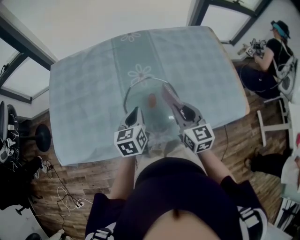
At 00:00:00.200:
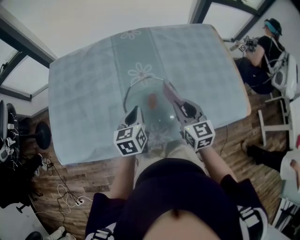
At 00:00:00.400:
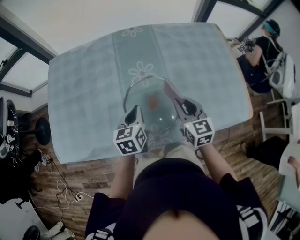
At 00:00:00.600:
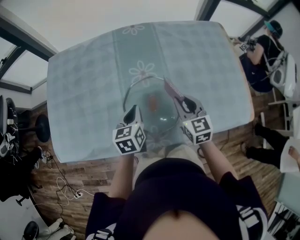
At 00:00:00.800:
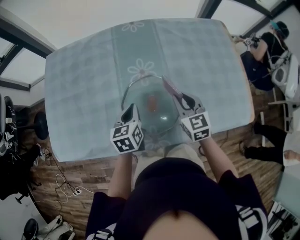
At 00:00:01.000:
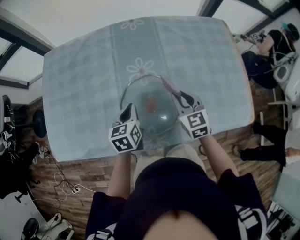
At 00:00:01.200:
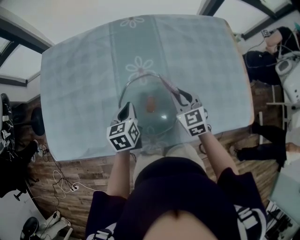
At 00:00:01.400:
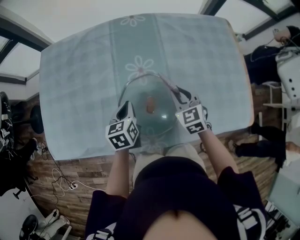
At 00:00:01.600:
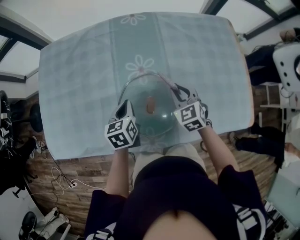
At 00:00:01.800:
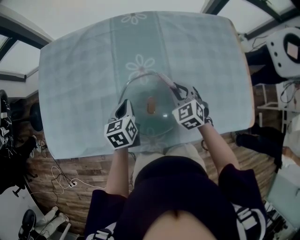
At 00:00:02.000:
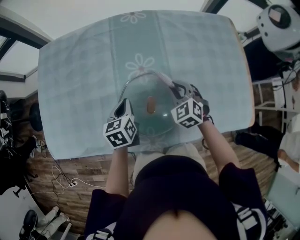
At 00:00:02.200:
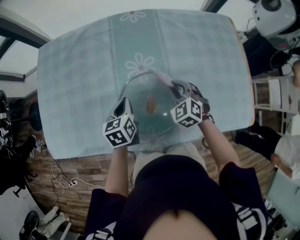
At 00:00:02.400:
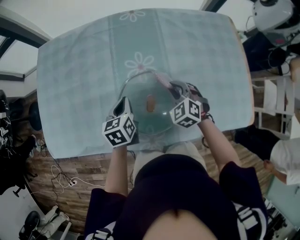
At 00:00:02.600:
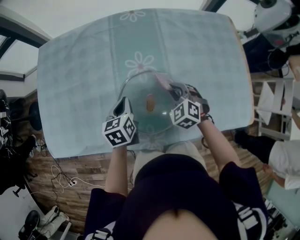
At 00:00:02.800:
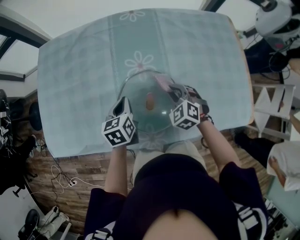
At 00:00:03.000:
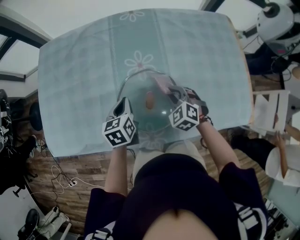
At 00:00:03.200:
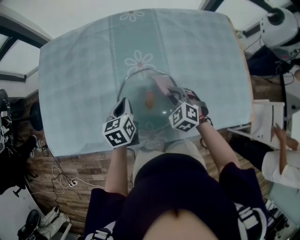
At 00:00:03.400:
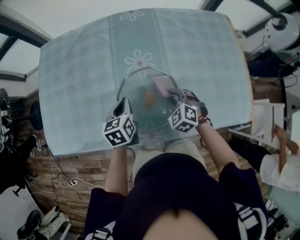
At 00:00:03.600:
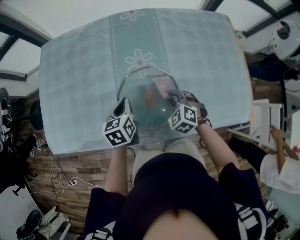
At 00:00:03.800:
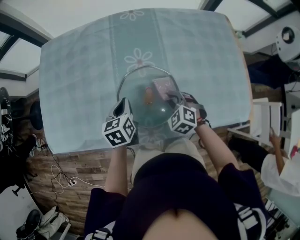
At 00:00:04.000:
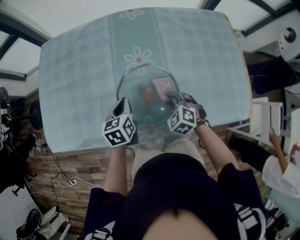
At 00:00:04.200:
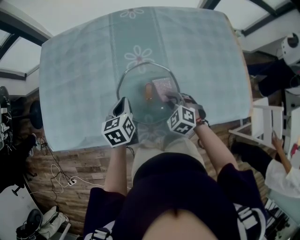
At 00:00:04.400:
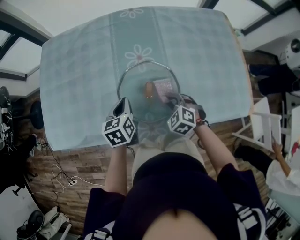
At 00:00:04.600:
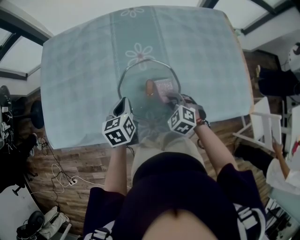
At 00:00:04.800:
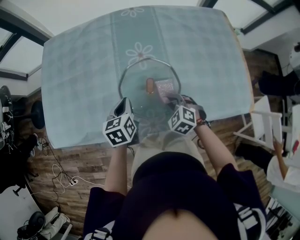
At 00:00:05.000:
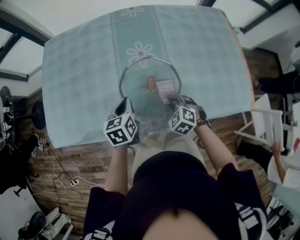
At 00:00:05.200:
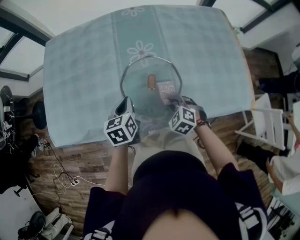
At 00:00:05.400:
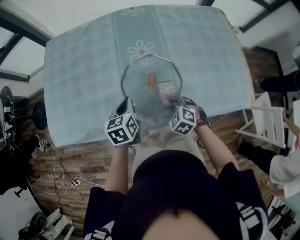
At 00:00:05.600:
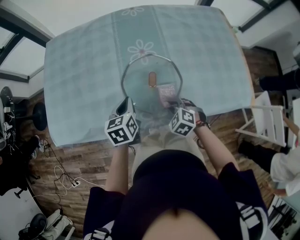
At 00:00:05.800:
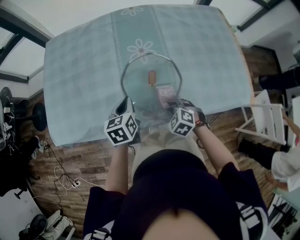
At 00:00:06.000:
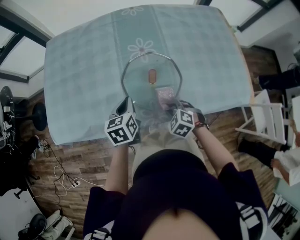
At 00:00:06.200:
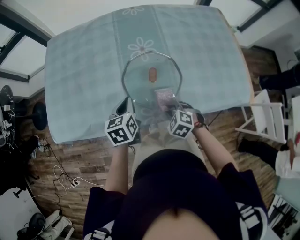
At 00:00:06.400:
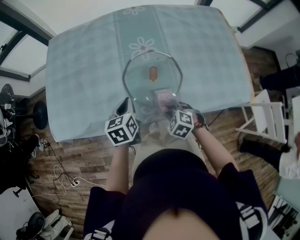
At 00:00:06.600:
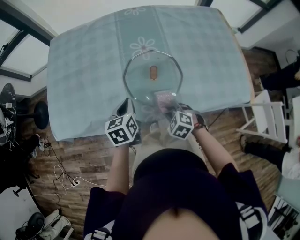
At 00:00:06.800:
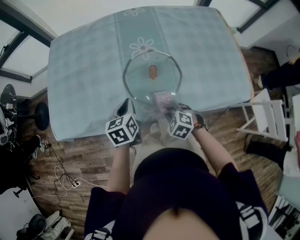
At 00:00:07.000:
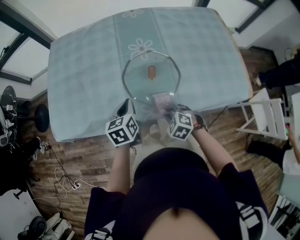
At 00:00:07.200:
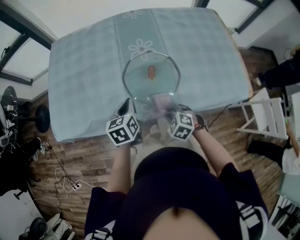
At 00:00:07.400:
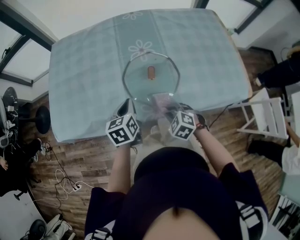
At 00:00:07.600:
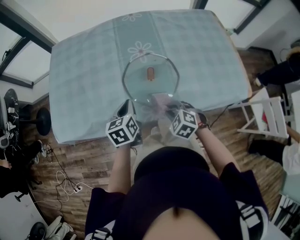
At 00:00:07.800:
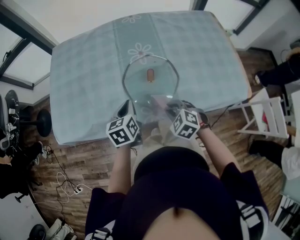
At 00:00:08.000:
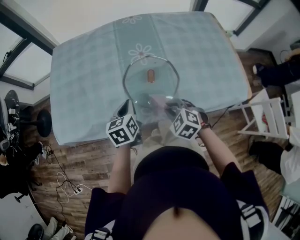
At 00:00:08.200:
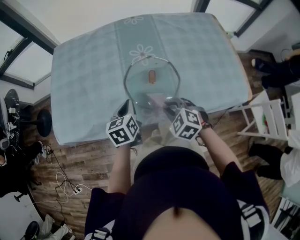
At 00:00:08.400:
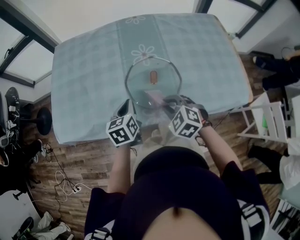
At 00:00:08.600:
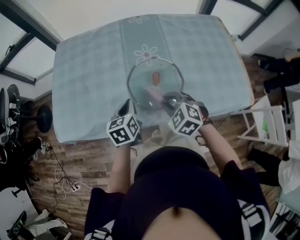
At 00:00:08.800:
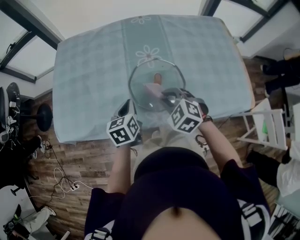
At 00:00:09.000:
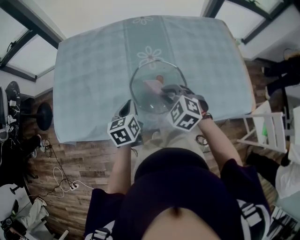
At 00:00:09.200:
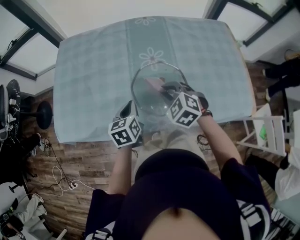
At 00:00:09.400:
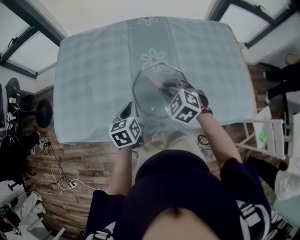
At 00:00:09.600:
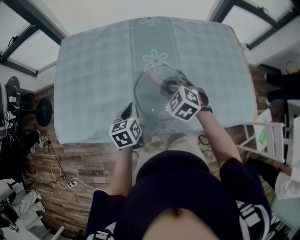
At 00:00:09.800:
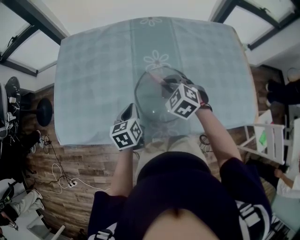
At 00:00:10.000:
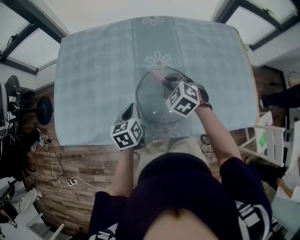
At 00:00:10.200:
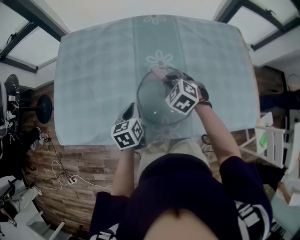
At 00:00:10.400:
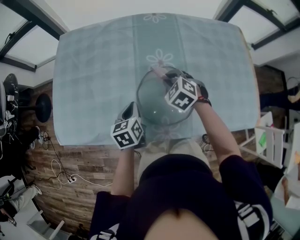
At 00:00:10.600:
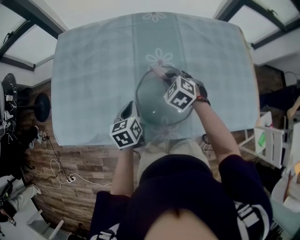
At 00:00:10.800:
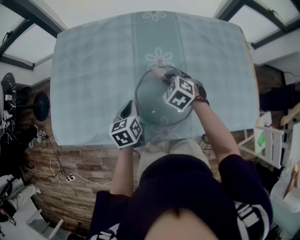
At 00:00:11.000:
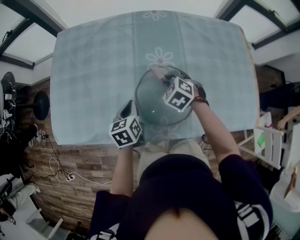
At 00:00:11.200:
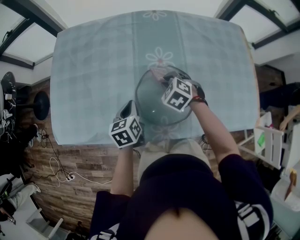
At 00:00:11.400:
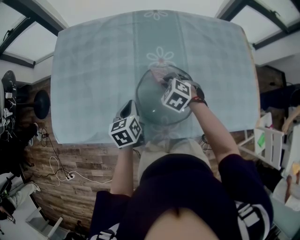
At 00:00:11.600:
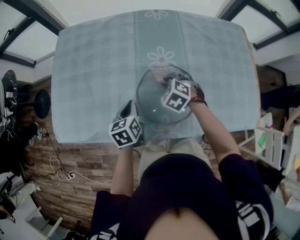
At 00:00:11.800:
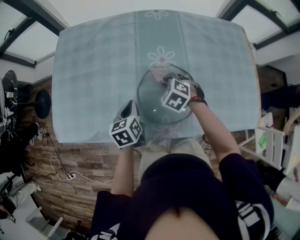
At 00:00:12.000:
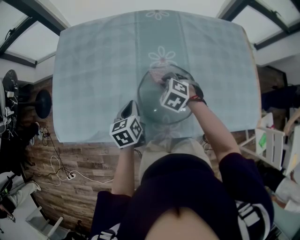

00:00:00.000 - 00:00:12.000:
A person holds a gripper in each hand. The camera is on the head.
00:00:00.000 - 00:00:01.600: The left gripper travels downward and forward by about 10 cm, while the right gripper heads forward and downward, covering approximately 20 cm, and swivels roughly 30 degrees.
00:00:01.600 - 00:00:03.000: The right gripper shifts by some 5 cm, and swivels about 20 degrees.
00:00:03.000 - 00:00:04.400: The right gripper shifts some 10 cm backward. Meanwhile the left gripper is displaced backward by some 5 cm.
00:00:04.400 - 00:00:06.000: The right gripper moves backward, approximately 10 cm, while the left gripper travels backward by roughly 5 cm.
00:00:06.000 - 00:00:07.600: The right gripper changes place by roughly 5 cm.
00:00:07.600 - 00:00:09.000: The right gripper heads forward and upward, covering some 15 cm.
00:00:09.000 - 00:00:10.400: The left gripper travels forward by approximately 5 cm, while the right gripper moves forward, approximately 15 cm.
00:00:10.400 - 00:00:12.000: The grippers make only small movements.

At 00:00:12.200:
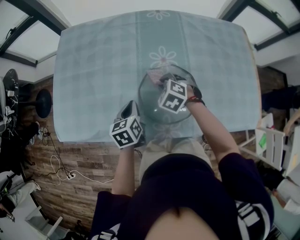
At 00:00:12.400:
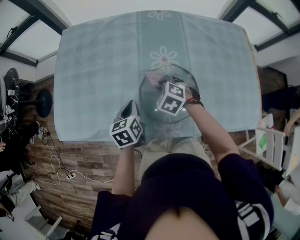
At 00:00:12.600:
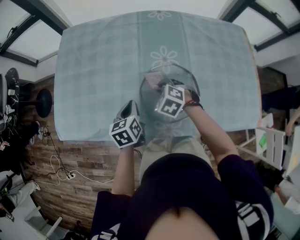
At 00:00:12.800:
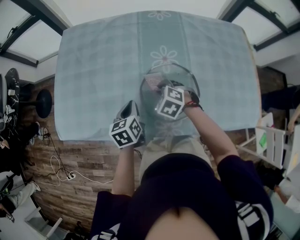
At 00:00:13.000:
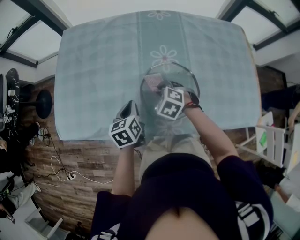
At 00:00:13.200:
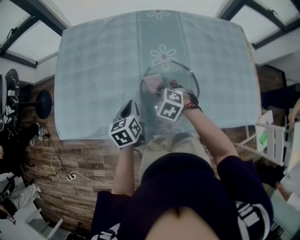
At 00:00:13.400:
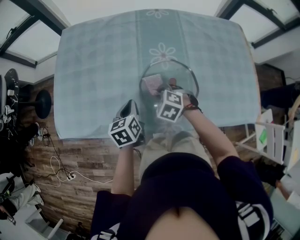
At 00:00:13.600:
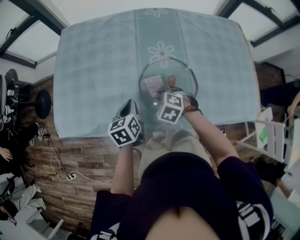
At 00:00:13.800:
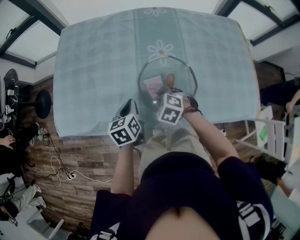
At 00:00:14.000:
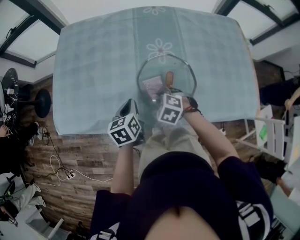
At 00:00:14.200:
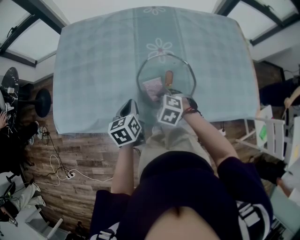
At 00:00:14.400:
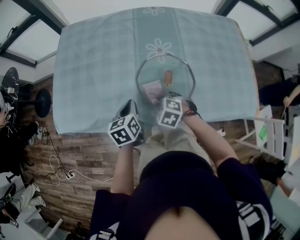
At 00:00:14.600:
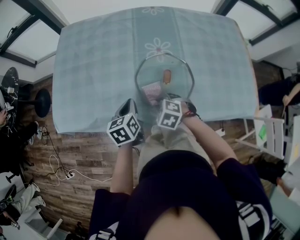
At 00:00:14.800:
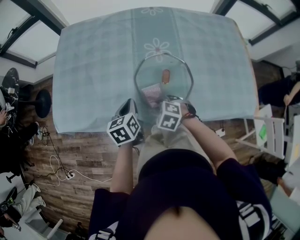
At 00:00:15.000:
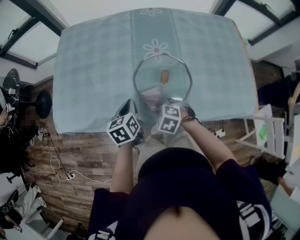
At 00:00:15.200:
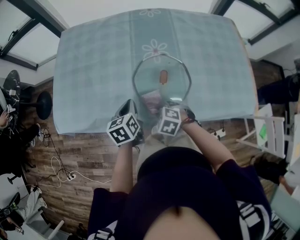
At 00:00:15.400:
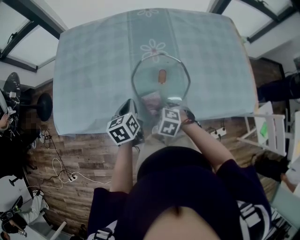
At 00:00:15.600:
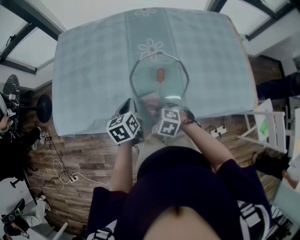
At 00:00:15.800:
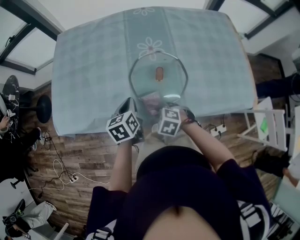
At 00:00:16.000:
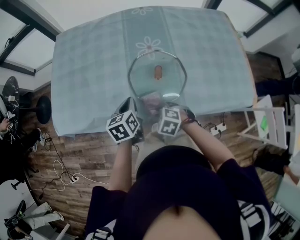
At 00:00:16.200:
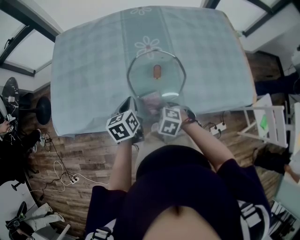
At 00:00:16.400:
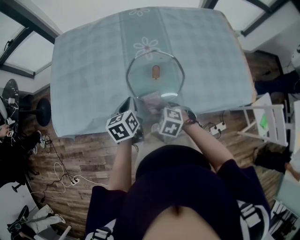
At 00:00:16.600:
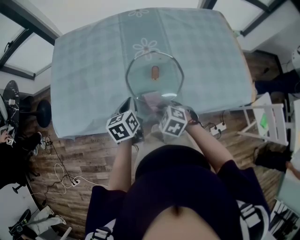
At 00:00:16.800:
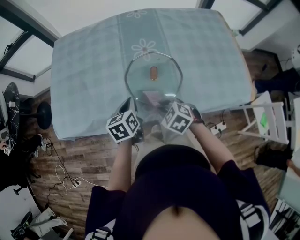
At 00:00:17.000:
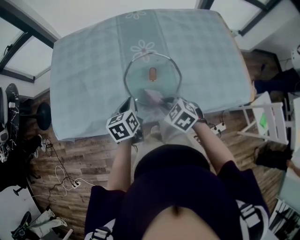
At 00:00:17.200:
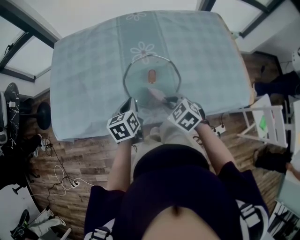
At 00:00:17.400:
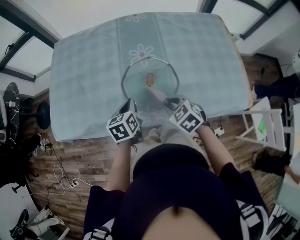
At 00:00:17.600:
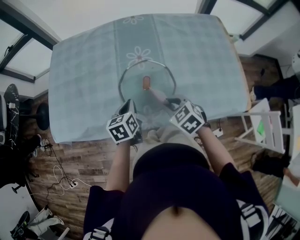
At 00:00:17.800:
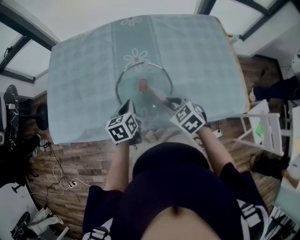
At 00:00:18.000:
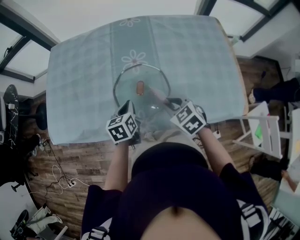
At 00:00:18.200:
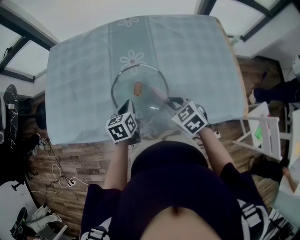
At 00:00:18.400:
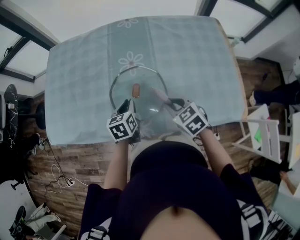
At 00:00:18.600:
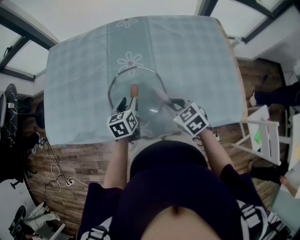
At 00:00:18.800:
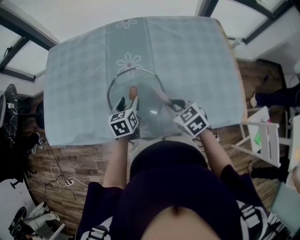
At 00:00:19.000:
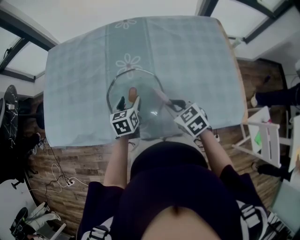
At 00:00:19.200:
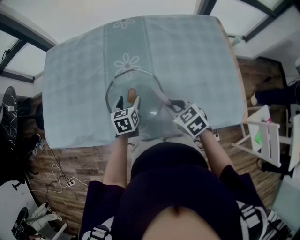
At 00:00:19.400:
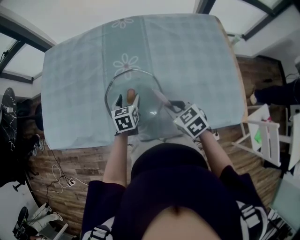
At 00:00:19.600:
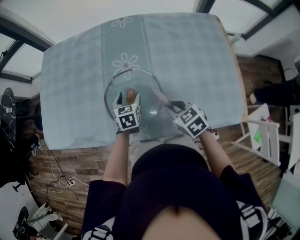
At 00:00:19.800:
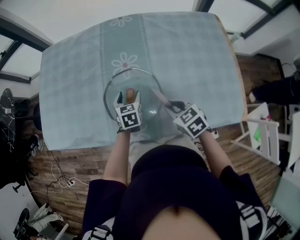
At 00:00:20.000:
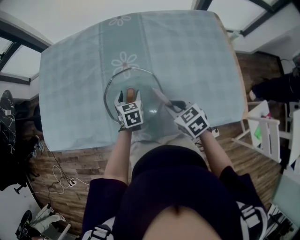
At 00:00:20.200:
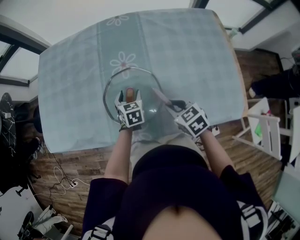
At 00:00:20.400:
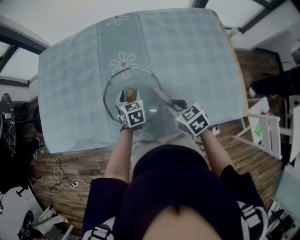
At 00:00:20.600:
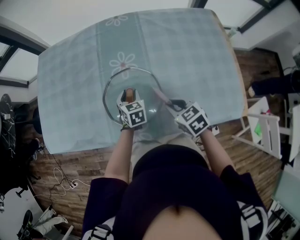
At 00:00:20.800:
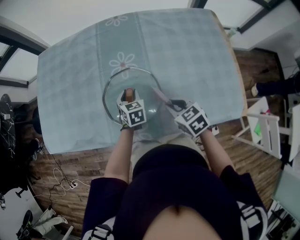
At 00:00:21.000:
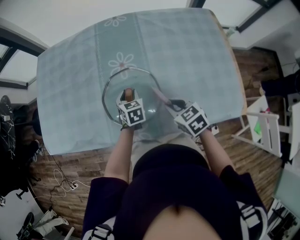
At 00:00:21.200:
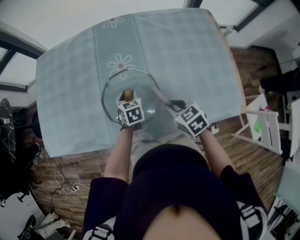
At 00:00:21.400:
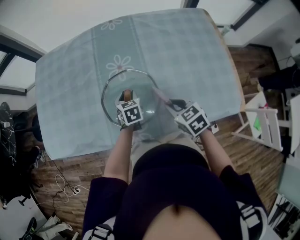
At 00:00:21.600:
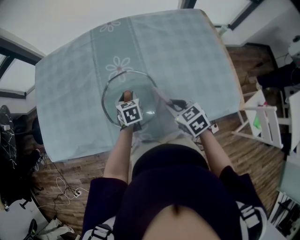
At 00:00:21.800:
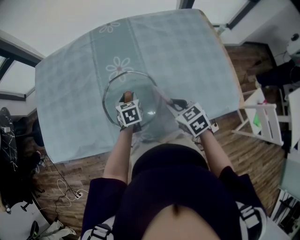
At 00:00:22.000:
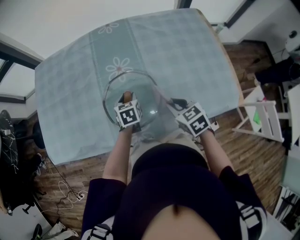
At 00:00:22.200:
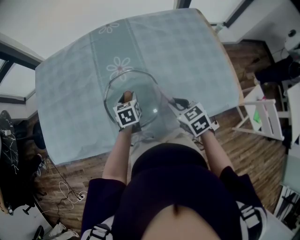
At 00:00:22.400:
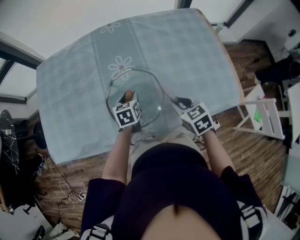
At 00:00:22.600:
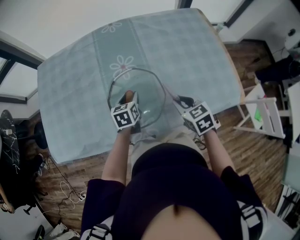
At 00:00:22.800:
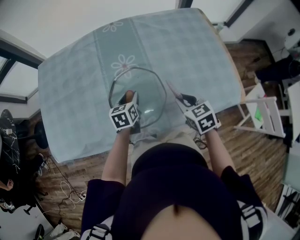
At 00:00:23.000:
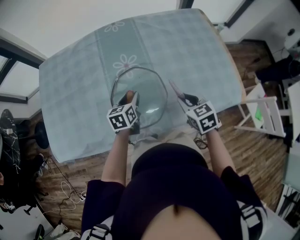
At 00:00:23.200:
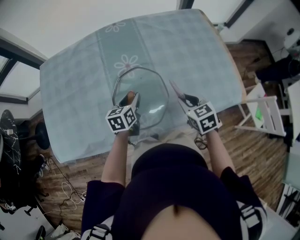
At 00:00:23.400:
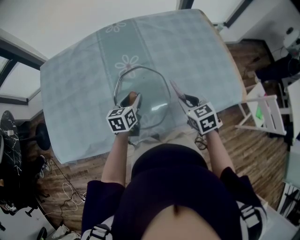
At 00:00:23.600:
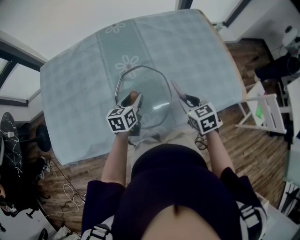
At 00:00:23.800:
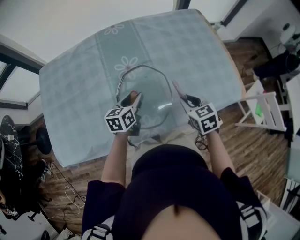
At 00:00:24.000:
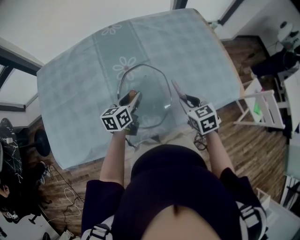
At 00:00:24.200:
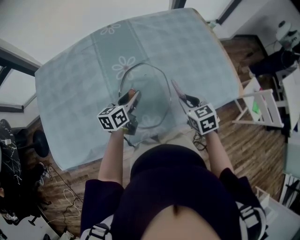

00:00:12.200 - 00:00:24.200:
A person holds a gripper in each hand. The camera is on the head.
00:00:12.200 - 00:00:13.800: The right gripper heads backward, covering approximately 10 cm.
00:00:13.800 - 00:00:15.200: The right gripper heads backward, covering approximately 10 cm.
00:00:15.200 - 00:00:16.600: There are only small adjustments of the grippers.
00:00:16.600 - 00:00:18.200: The left gripper is displaced to the right by approximately 10 cm. The right gripper is displaced to the right and upward by some 20 cm, and rotates roughly 20 degrees.
00:00:18.200 - 00:00:19.800: The left gripper moves downward, forward and to the right, about 10 cm, and opens its fingers; the right gripper ends up approximately 5 cm from where it was.
00:00:19.800 - 00:00:21.200: The left gripper closes its fingers.
00:00:21.200 - 00:00:22.600: The grippers move only a little.
00:00:22.600 - 00:00:24.200: The left gripper moves upward, about 5 cm, and changes its angle by some 30 degrees.
